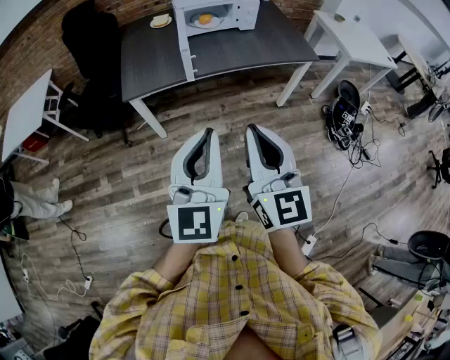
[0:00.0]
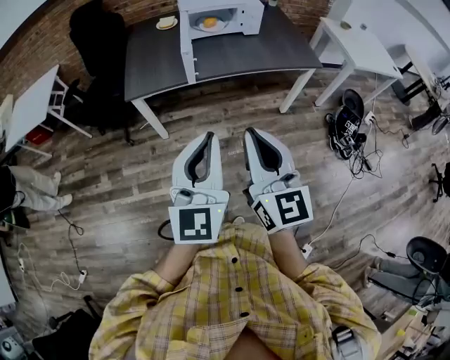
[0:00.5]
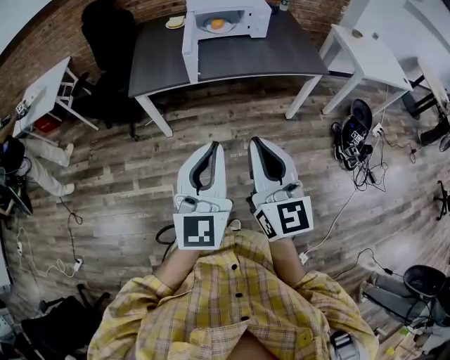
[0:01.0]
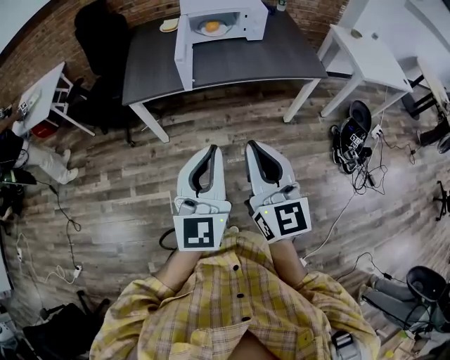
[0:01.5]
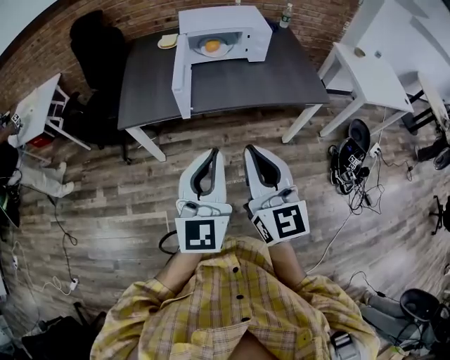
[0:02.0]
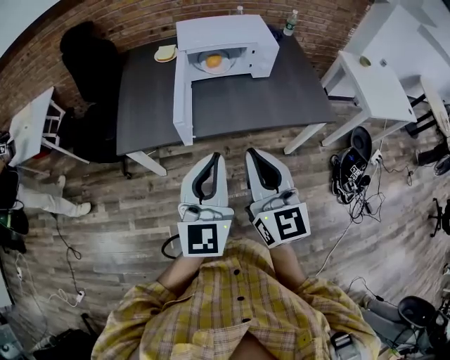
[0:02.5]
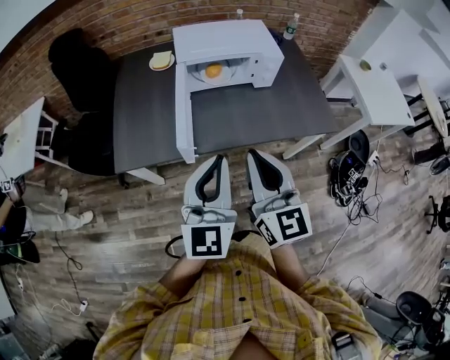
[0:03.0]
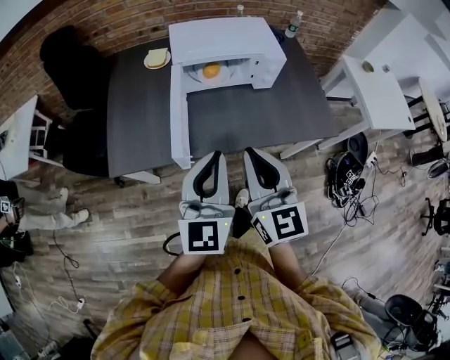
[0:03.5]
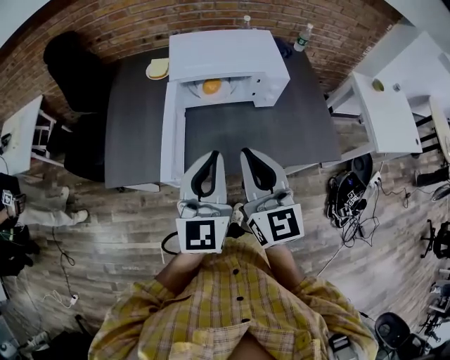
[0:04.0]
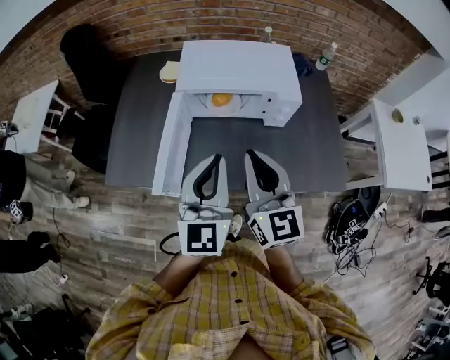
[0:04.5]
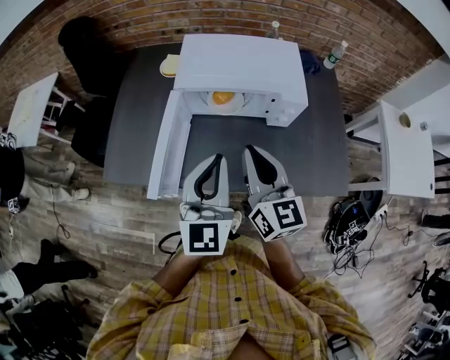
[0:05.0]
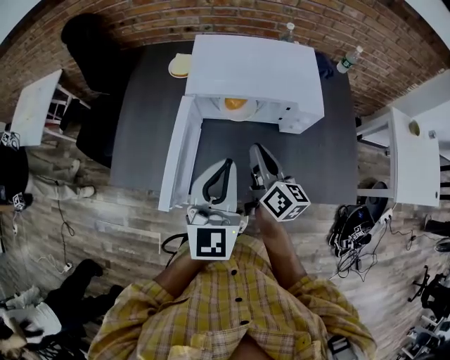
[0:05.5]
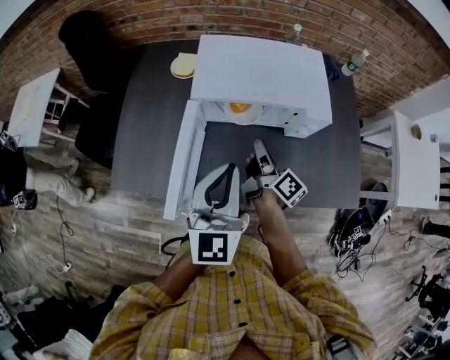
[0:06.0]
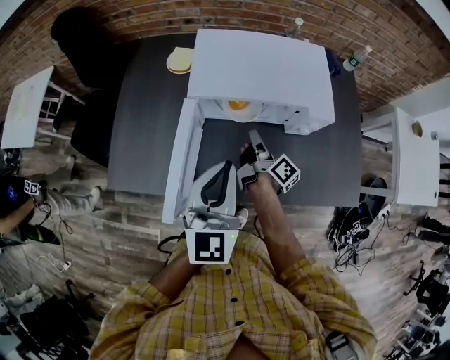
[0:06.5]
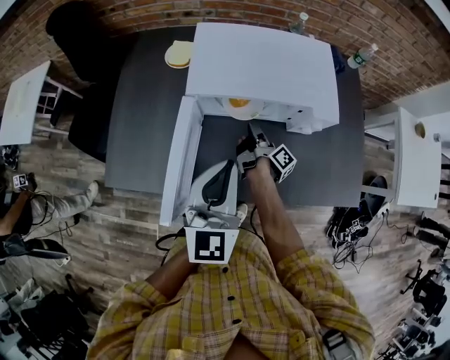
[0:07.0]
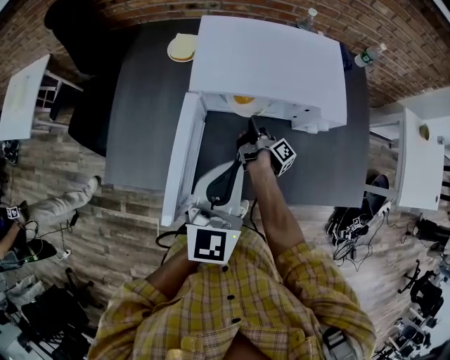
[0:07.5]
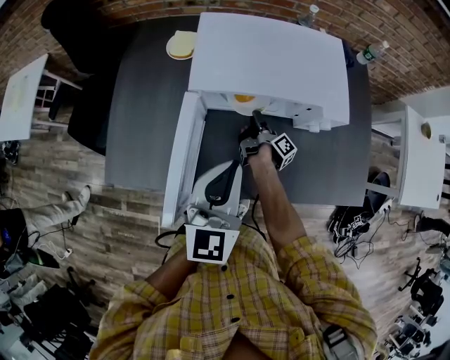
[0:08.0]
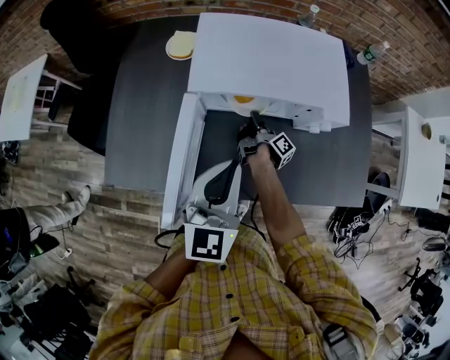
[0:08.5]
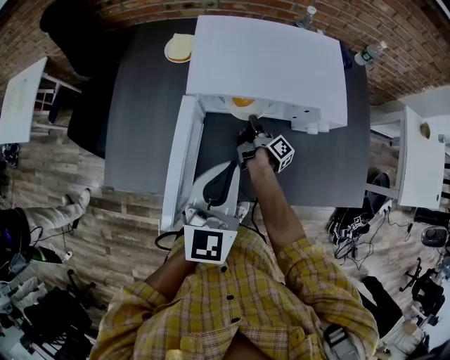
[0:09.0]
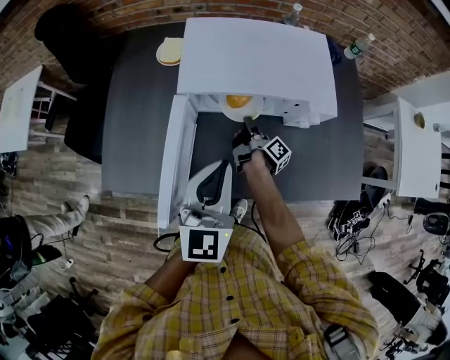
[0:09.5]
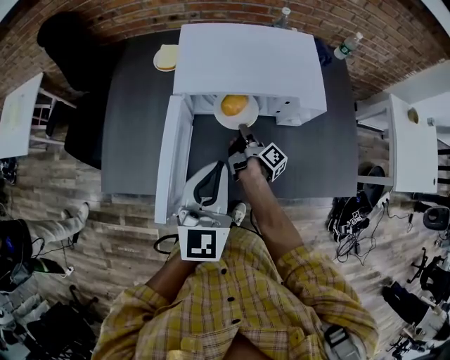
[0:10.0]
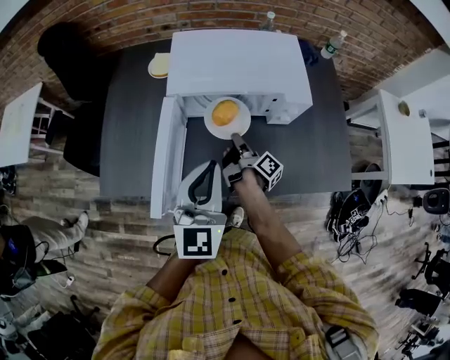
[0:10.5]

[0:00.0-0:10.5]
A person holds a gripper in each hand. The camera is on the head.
0:00.0 to 0:02.0: The grippers both shift forward and to the right by roughly 20 cm.
0:02.0 to 0:04.0: Both grippers move forward, approximately 35 cm.
0:04.0 to 0:06.5: The left gripper moves forward, roughly 15 cm. The right gripper shifts some 40 cm forward and downward, and twists about 80 degrees clockwise, seen from behind.
0:06.5 to 0:08.5: The left gripper shifts by about 5 cm. The right gripper heads downward and forward, covering roughly 15 cm, and turns by roughly 20 degrees.
0:08.5 to 0:10.5: The right gripper is displaced backward and upward by about 15 cm; the left gripper goes roughly 5 cm backward.

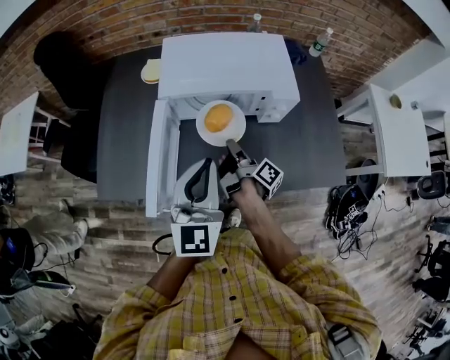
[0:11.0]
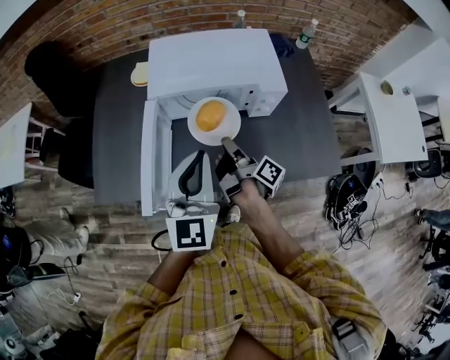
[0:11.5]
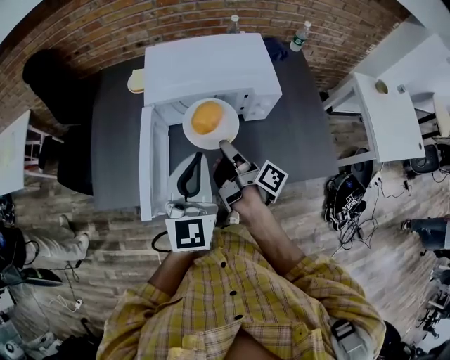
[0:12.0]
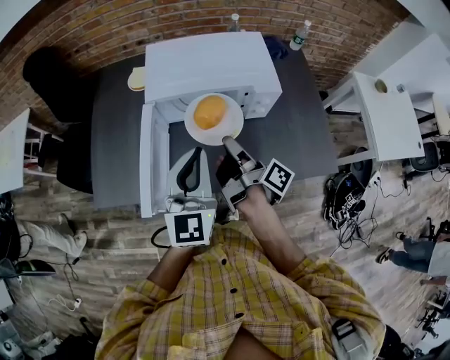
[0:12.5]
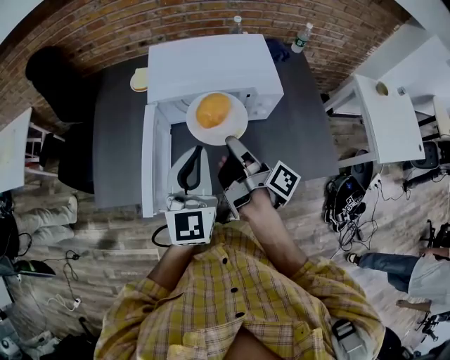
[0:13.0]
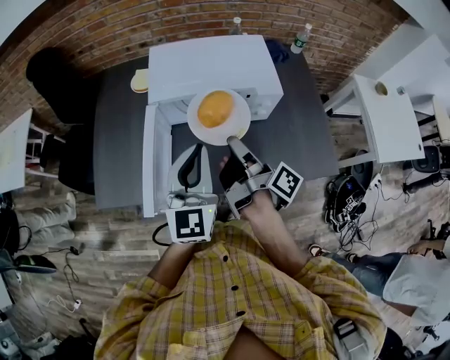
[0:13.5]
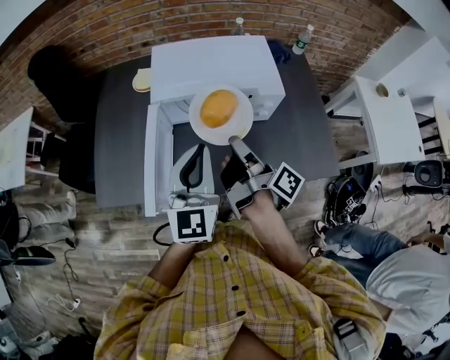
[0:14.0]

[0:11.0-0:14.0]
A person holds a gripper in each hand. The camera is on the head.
0:11.0 to 0:12.5: The right gripper heads upward, covering approximately 10 cm.
0:12.5 to 0:14.0: There are only small adjustments of the grippers.

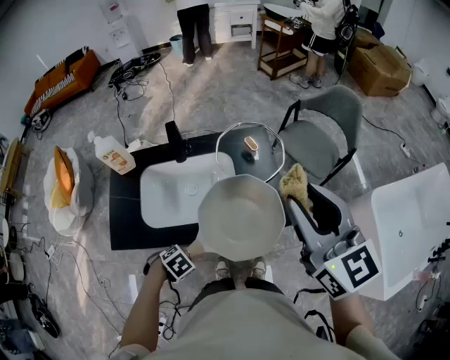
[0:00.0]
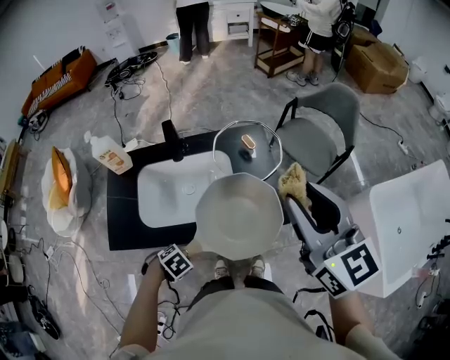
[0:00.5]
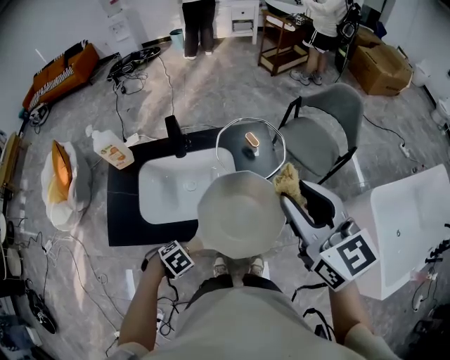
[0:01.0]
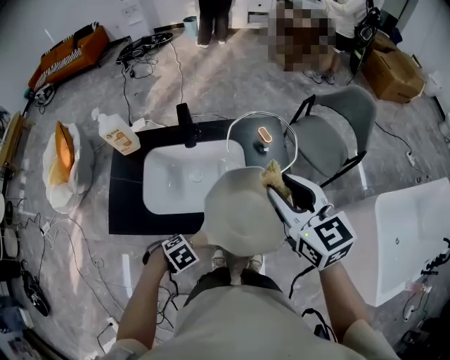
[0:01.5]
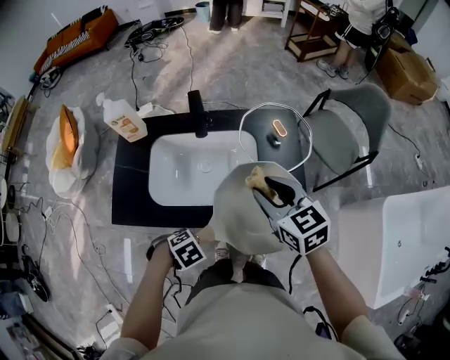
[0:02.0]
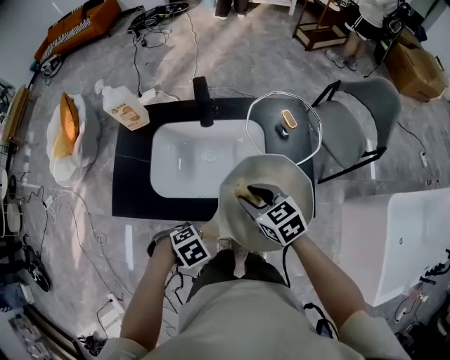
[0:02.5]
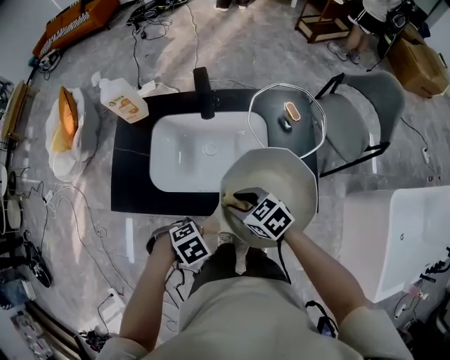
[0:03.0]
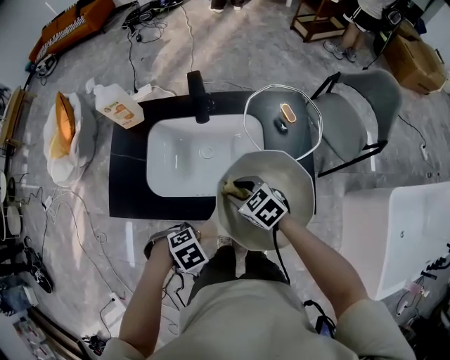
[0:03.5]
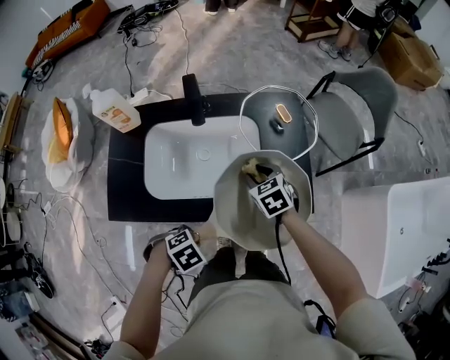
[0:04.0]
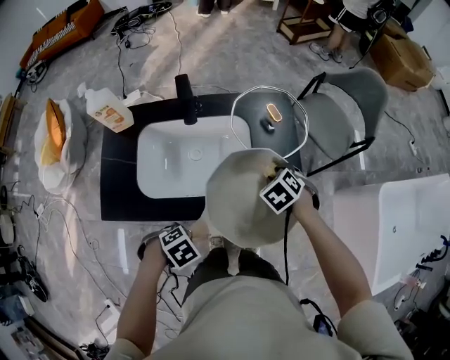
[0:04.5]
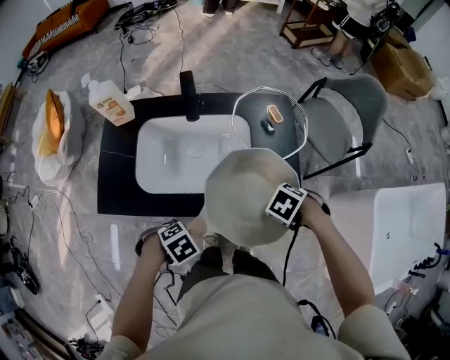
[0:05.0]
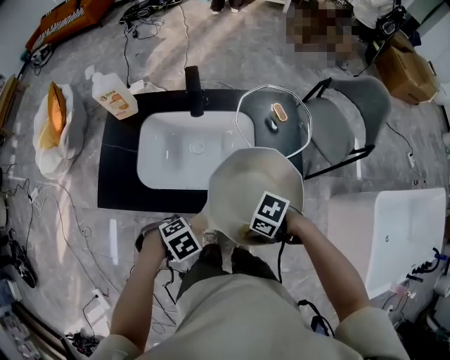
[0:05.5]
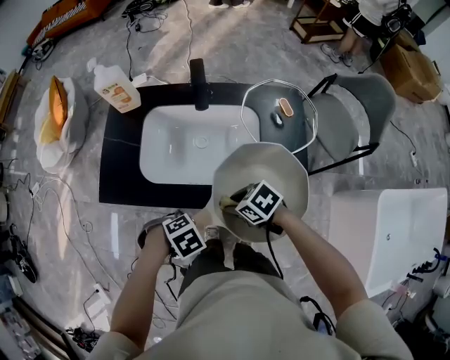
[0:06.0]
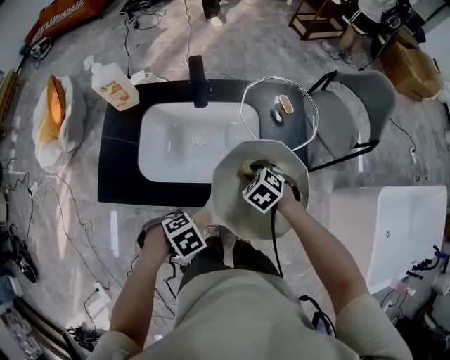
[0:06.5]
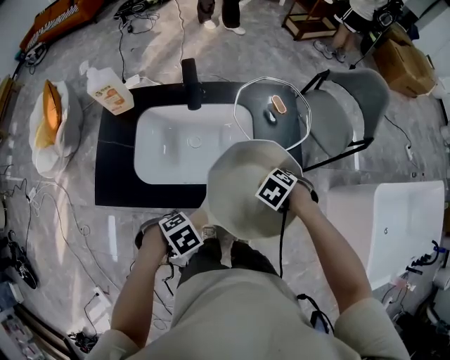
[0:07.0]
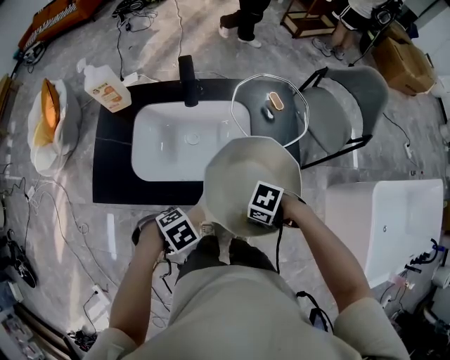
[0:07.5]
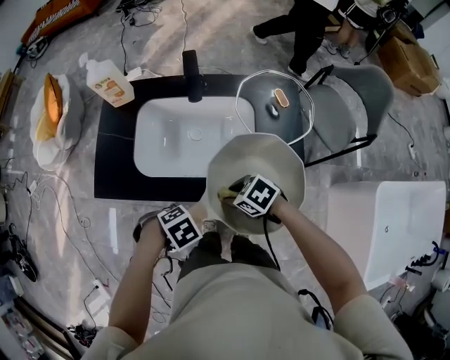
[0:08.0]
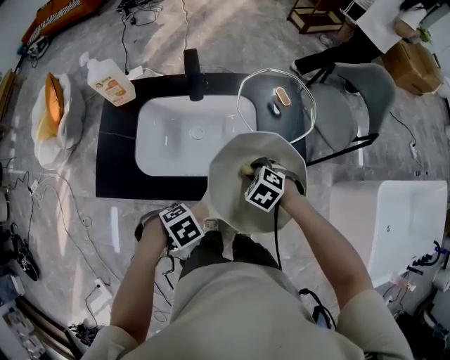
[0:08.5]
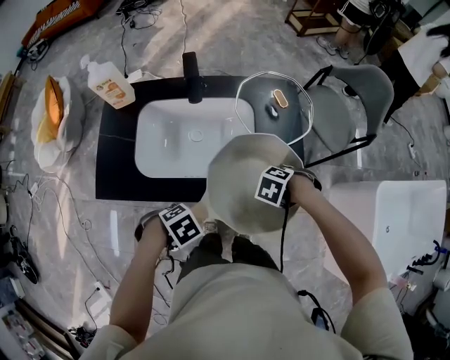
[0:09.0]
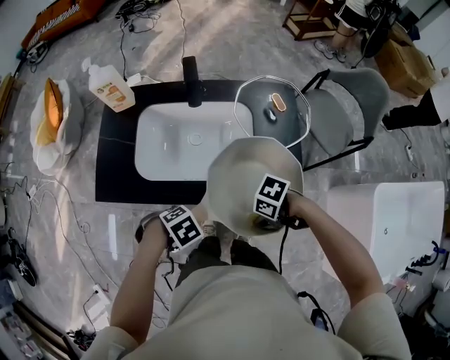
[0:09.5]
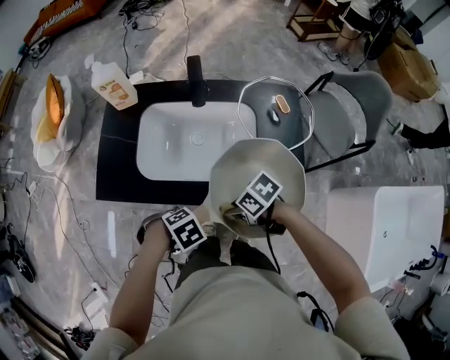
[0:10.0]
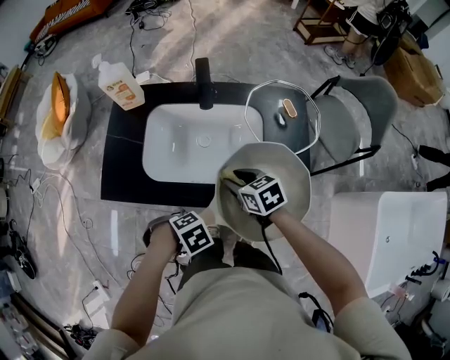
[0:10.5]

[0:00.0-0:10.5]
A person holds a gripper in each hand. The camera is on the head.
0:00.0 to 0:02.0: The right gripper is displaced downward by approximately 20 cm, and rotates approximately 30 degrees.
0:02.0 to 0:04.0: The right gripper is displaced downward by roughly 20 cm, and swivels about 20 degrees.
0:04.0 to 0:06.5: The right gripper rotates approximately 30 degrees.
0:08.5 to 0:10.5: The right gripper rotates about 40 degrees.

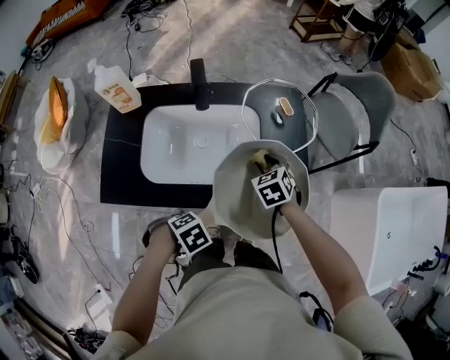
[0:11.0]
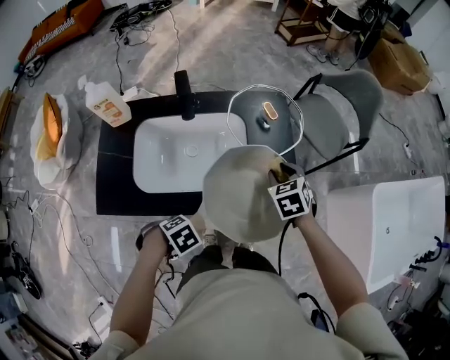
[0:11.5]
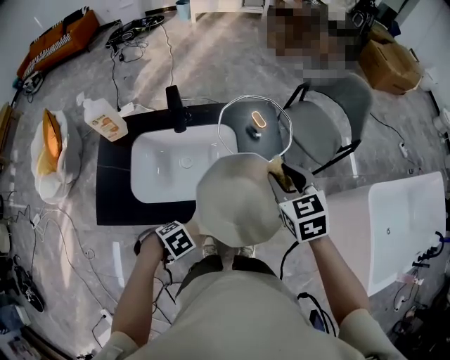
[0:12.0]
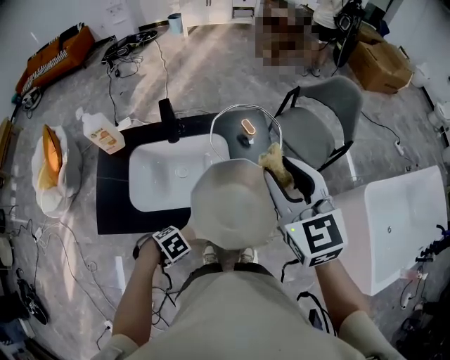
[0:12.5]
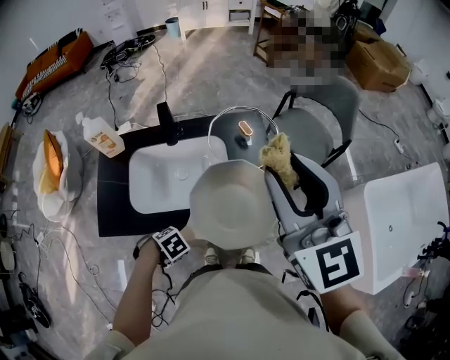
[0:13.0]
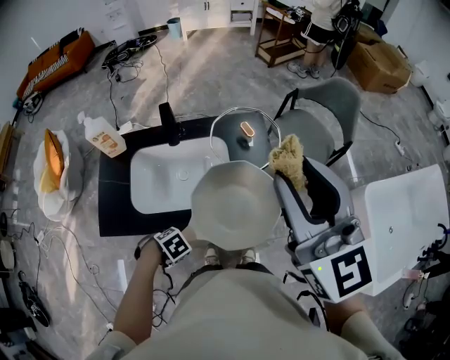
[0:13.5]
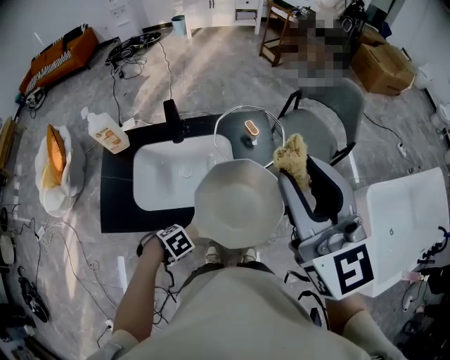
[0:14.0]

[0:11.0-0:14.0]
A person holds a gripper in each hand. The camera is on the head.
0:11.0 to 0:12.5: The right gripper travels upward by approximately 35 cm, and tips its fingers upward by about 40 degrees.
0:12.5 to 0:14.0: The right gripper is displaced upward by some 10 cm.
